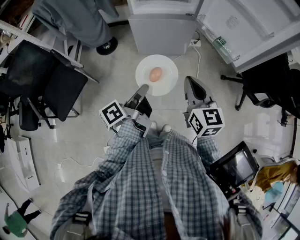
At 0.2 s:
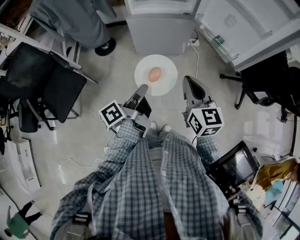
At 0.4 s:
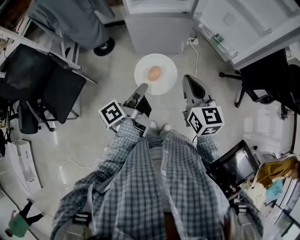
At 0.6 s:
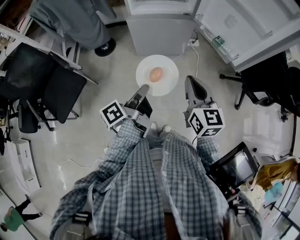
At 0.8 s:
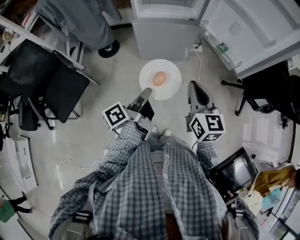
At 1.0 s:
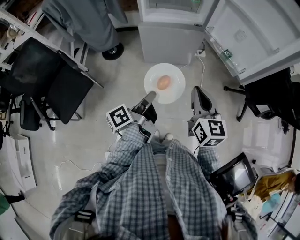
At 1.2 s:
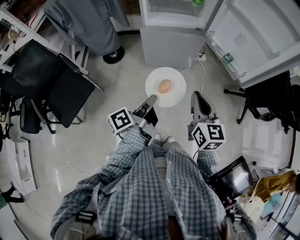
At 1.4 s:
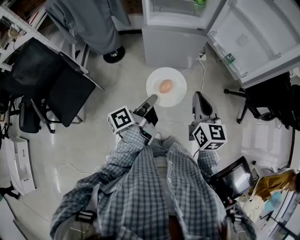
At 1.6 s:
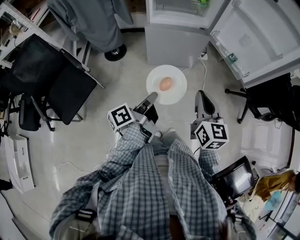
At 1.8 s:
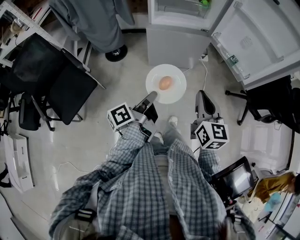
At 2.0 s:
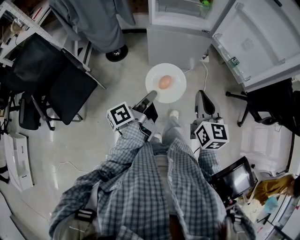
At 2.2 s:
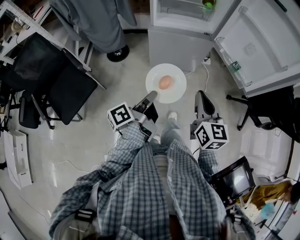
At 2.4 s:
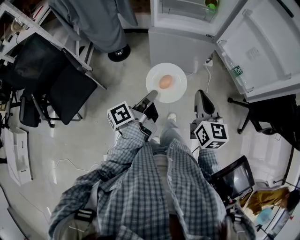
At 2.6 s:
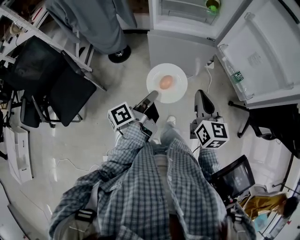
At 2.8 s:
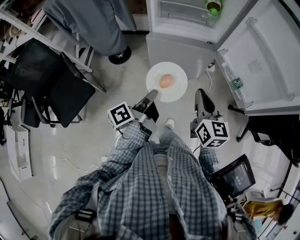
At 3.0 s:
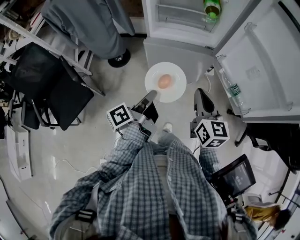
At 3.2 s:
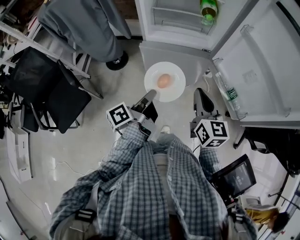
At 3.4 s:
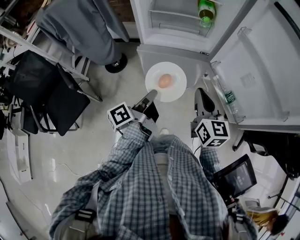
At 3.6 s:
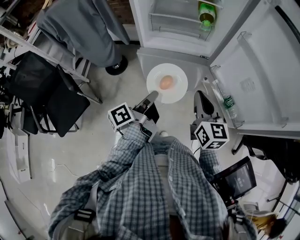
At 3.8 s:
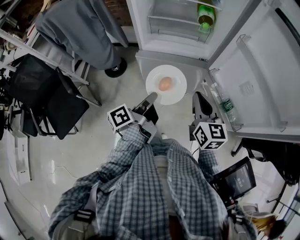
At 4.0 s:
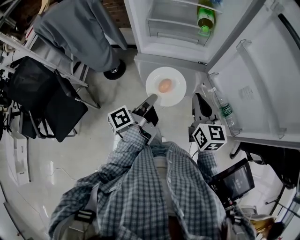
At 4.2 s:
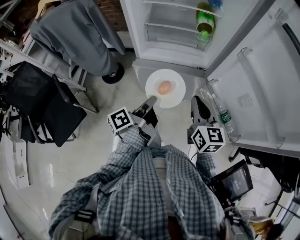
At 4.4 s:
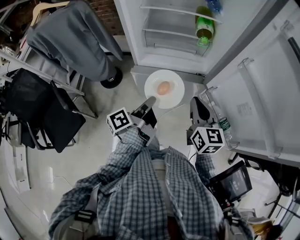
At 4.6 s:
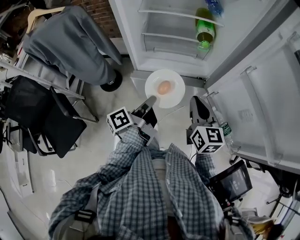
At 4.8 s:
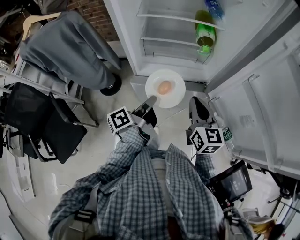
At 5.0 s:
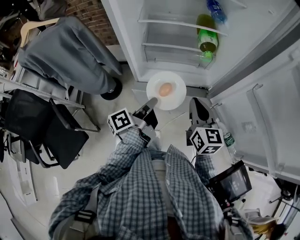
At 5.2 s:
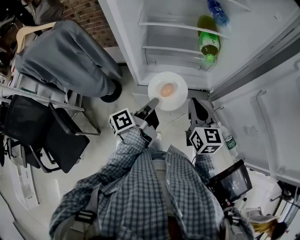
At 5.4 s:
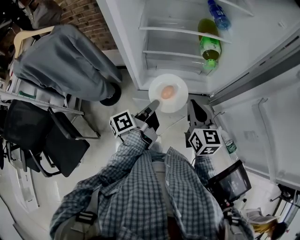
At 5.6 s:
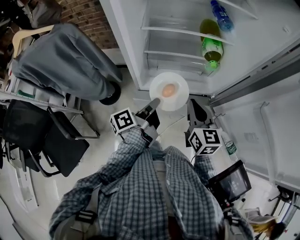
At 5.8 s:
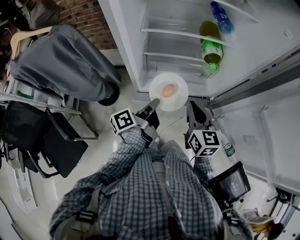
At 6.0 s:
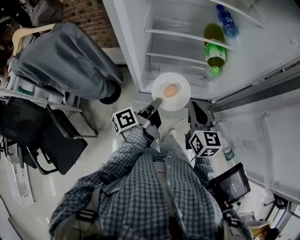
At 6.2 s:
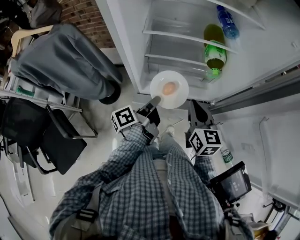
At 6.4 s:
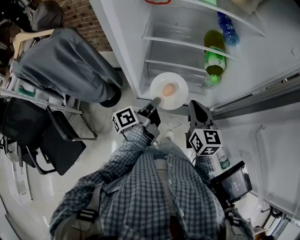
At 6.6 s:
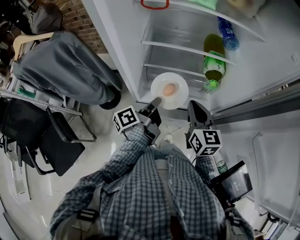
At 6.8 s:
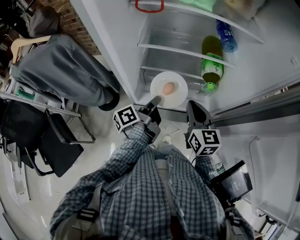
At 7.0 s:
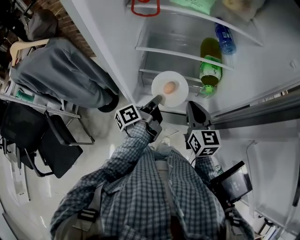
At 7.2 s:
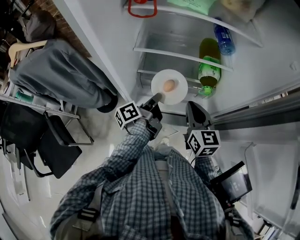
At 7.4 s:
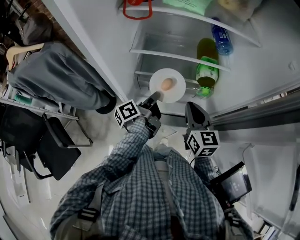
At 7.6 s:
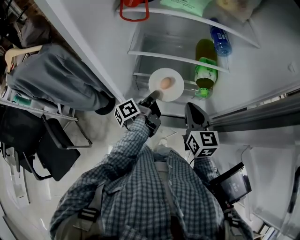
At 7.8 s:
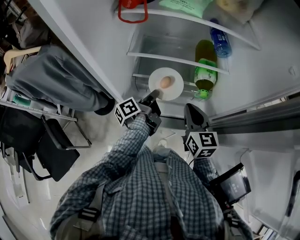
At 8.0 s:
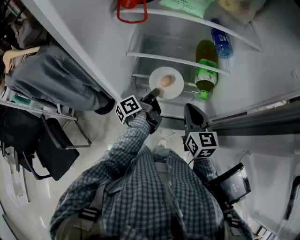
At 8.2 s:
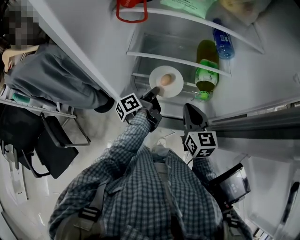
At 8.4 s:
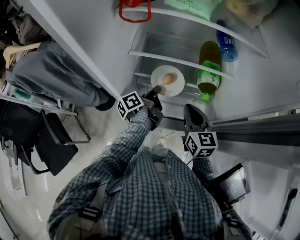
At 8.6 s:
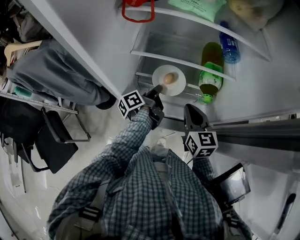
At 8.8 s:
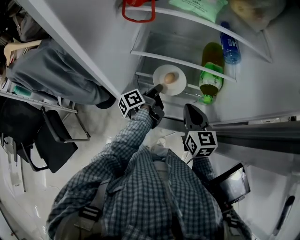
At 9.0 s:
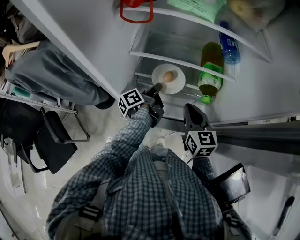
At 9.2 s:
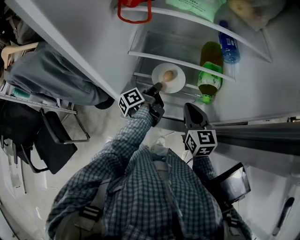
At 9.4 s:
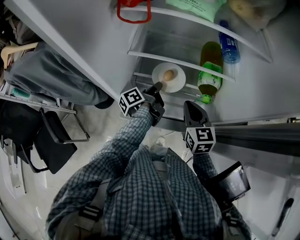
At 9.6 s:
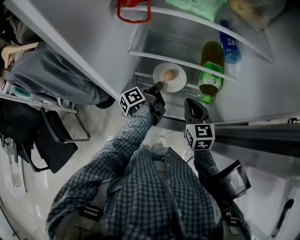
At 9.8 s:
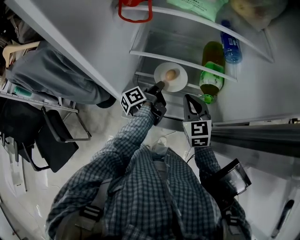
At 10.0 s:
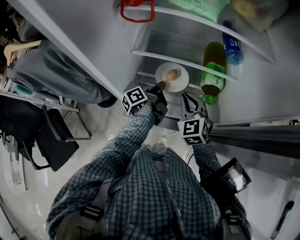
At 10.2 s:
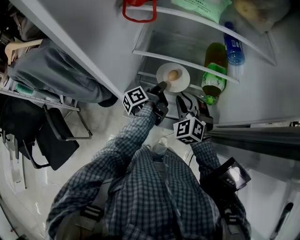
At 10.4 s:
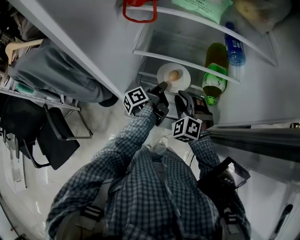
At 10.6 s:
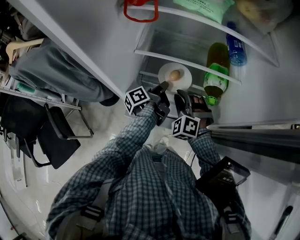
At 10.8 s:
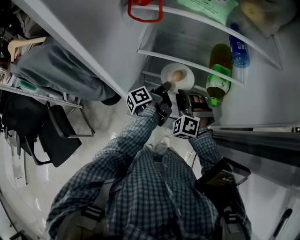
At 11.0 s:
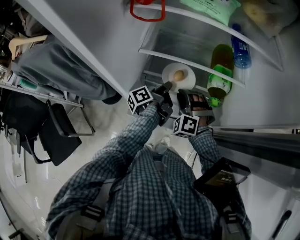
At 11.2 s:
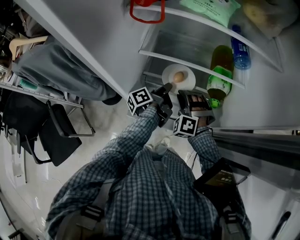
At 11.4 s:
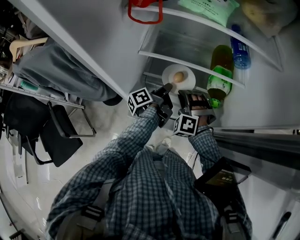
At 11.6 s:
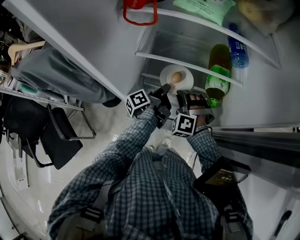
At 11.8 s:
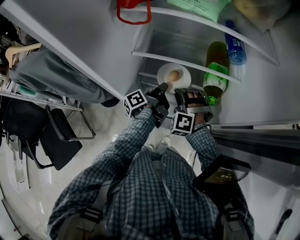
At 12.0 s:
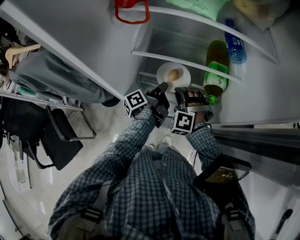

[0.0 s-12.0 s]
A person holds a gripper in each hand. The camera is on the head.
1.6 to 3.0 s: The right gripper shifts by roughly 20 cm.
3.0 to 4.4 s: The right gripper changes place by roughly 15 cm.
4.4 to 6.0 s: The right gripper shifts by roughly 20 cm.
6.0 to 7.6 s: The right gripper changes place by approximately 10 cm.
9.0 to 10.4 s: The right gripper shifts by roughly 10 cm, and twists roughly 60 degrees counterclockwise, seen from behind.

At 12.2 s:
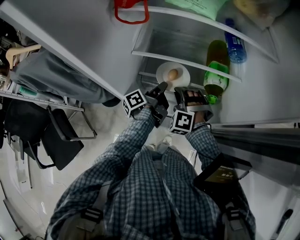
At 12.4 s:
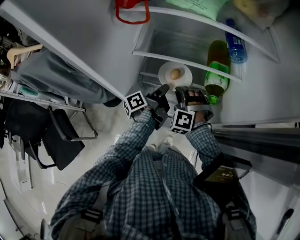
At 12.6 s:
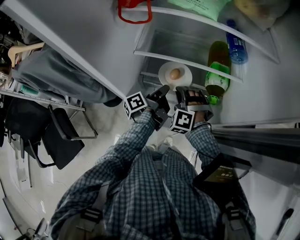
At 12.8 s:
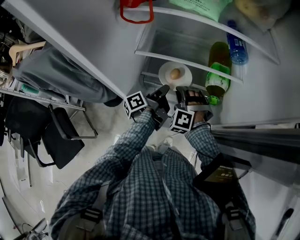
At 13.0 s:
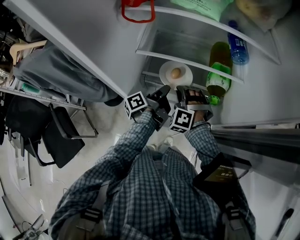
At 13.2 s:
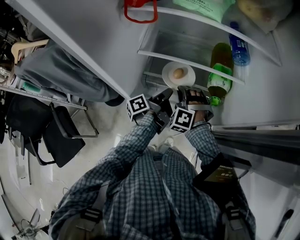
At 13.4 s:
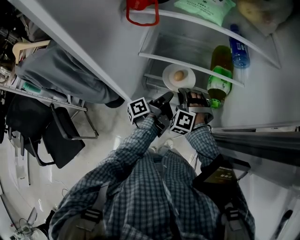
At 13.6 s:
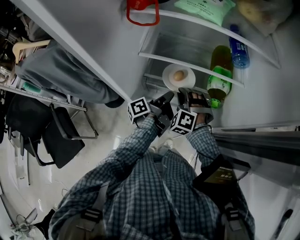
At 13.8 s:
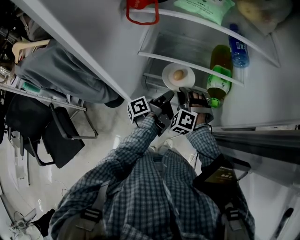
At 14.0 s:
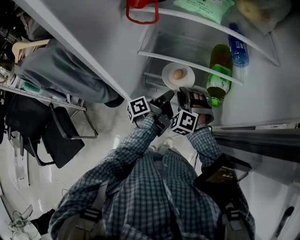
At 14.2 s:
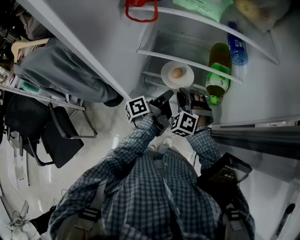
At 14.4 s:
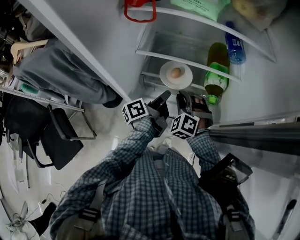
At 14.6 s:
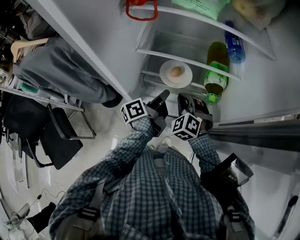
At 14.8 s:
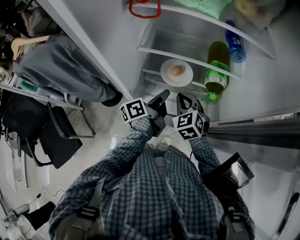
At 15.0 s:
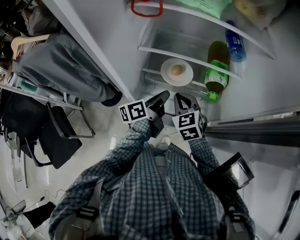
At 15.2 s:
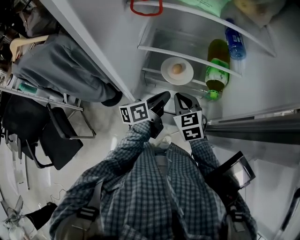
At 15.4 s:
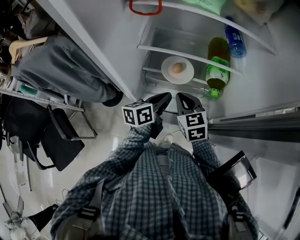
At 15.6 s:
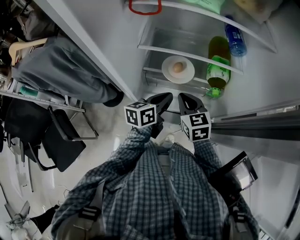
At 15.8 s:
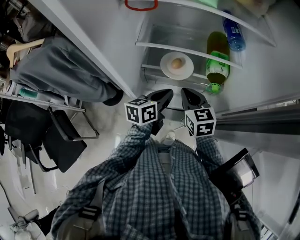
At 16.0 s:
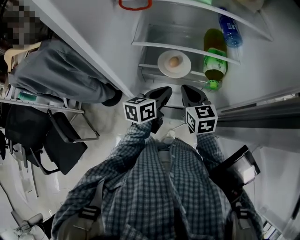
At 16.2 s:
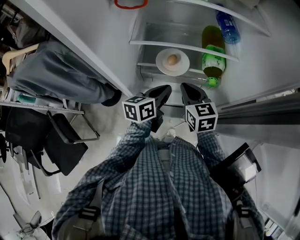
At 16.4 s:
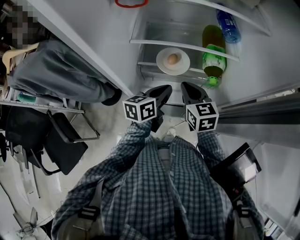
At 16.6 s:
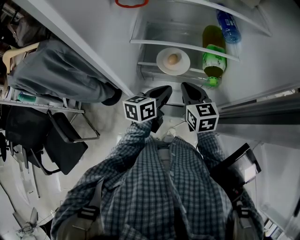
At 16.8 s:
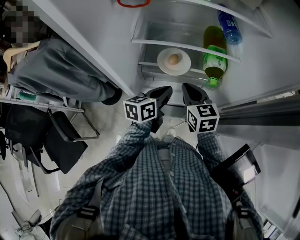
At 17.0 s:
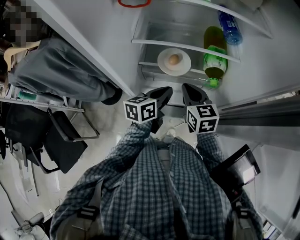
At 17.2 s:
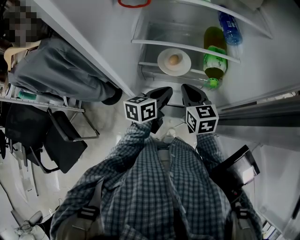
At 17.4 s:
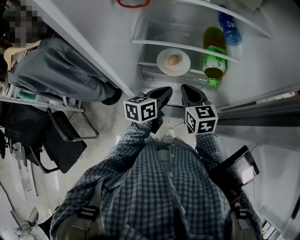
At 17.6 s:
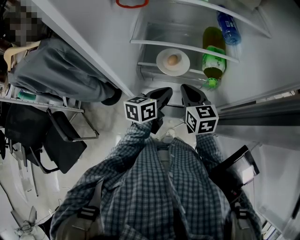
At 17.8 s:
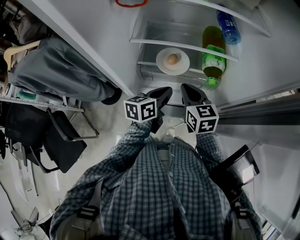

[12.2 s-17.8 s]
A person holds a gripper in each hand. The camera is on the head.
13.6 to 15.0 s: The right gripper moves about 5 cm, and twists approximately 50 degrees clockwise, seen from behind.
15.0 to 16.4 s: The right gripper changes its angle by roughly 20 degrees.

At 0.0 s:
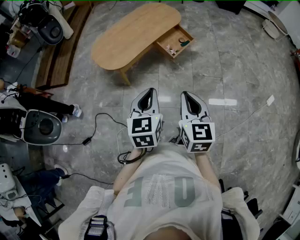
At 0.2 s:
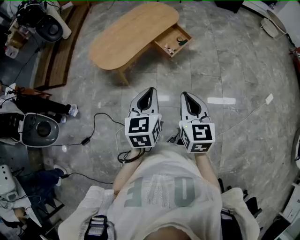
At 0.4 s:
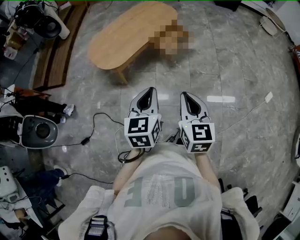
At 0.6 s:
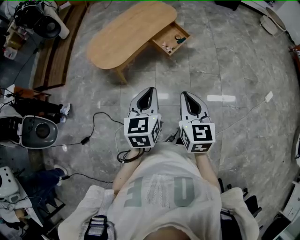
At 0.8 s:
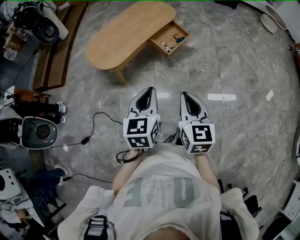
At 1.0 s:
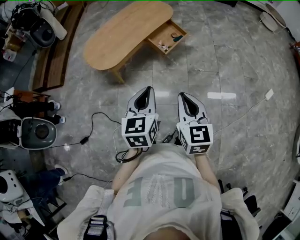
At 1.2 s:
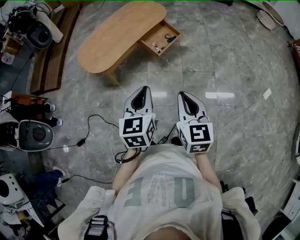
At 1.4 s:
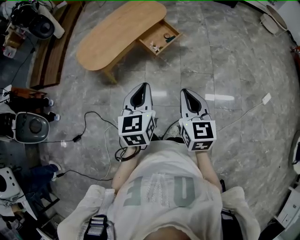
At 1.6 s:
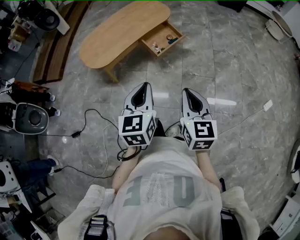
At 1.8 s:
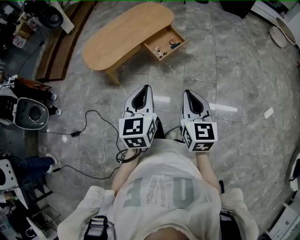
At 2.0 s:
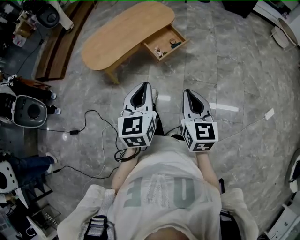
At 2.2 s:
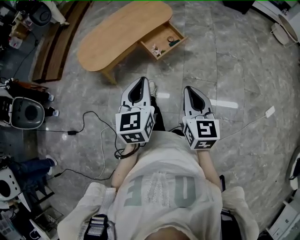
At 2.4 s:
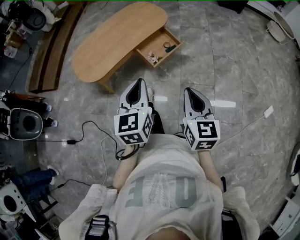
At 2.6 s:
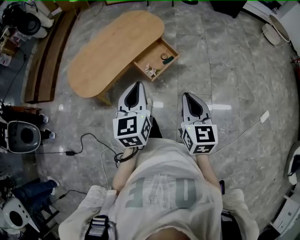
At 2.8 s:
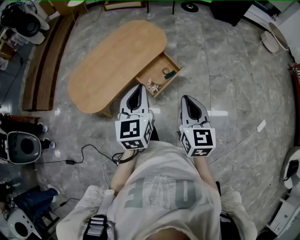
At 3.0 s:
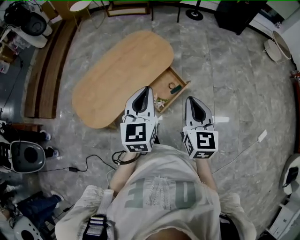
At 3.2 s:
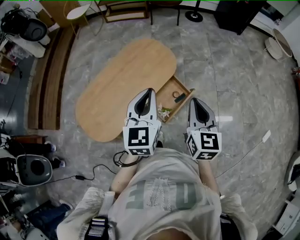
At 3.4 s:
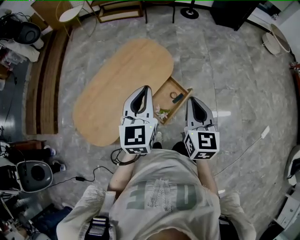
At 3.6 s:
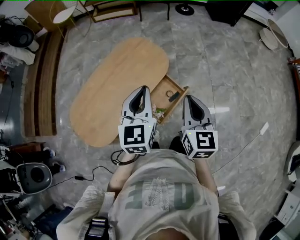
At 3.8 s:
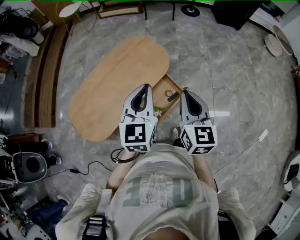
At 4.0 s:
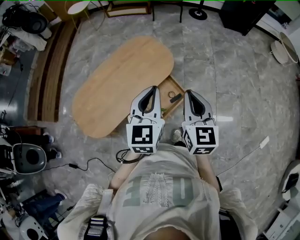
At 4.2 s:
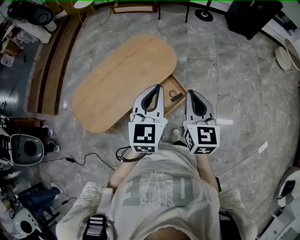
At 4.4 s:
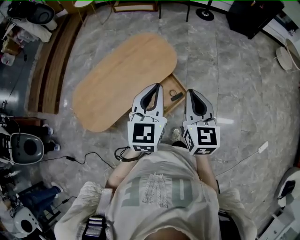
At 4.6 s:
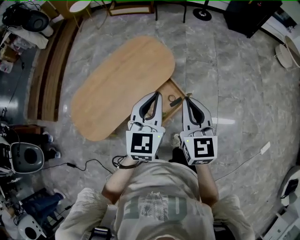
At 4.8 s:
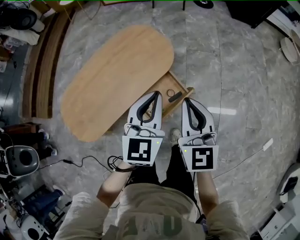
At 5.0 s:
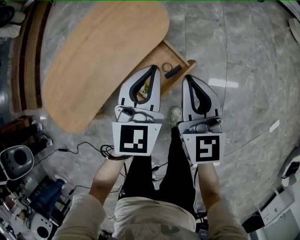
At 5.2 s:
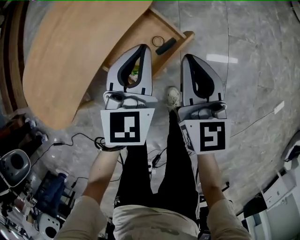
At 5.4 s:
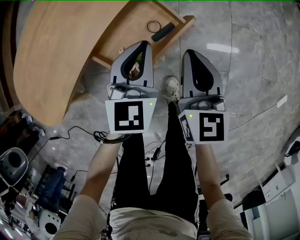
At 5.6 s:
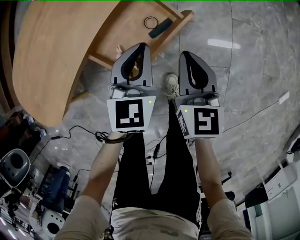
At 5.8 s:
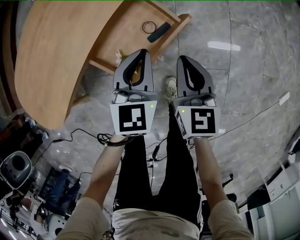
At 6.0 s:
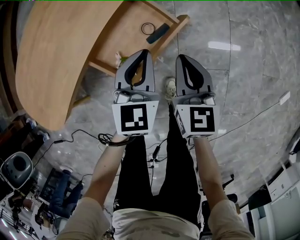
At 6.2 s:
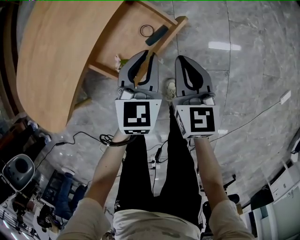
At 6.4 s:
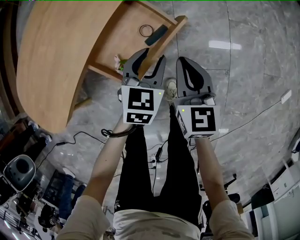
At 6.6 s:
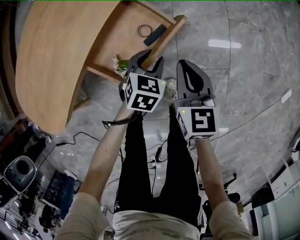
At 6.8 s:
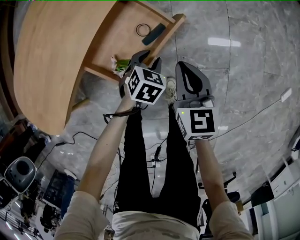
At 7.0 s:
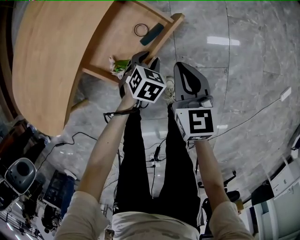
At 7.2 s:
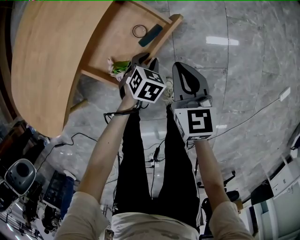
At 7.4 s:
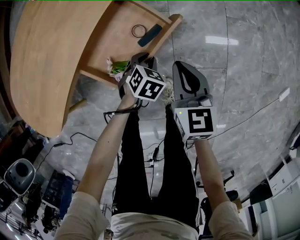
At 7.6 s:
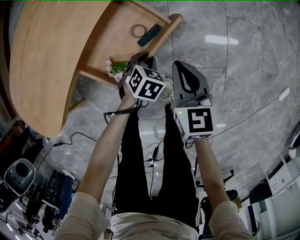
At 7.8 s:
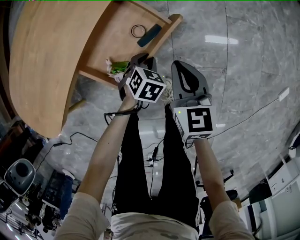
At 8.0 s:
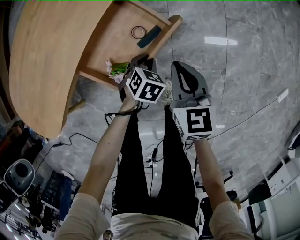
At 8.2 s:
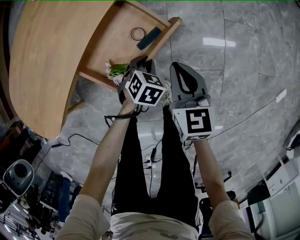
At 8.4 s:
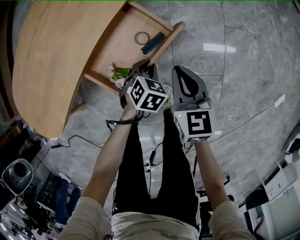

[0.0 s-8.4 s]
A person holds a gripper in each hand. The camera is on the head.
0.0 to 1.4 s: The grippers both shift to the right by some 15 cm.
1.4 to 2.8 s: Both grippers travel together forward, roughly 30 cm.
2.8 to 4.2 s: The two grippers go approximately 20 cm forward.
4.2 to 5.6 s: Both grippers travel together downward, about 40 cm.
5.6 to 7.0 s: The left gripper moves downward, approximately 20 cm, angles its fingers downward, by approximately 40 degrees, and opens its fingers. The right gripper goes about 5 cm downward.
7.0 to 8.4 s: The grippers move only a little.
